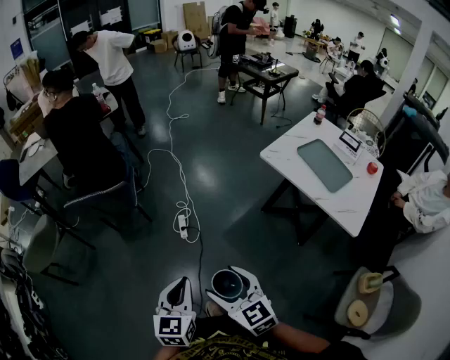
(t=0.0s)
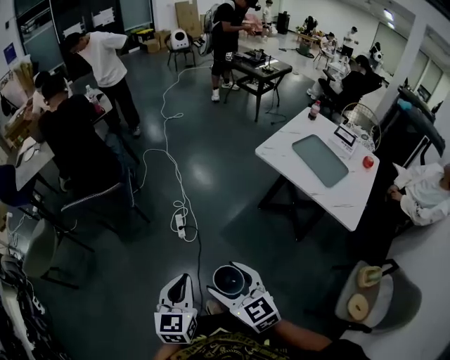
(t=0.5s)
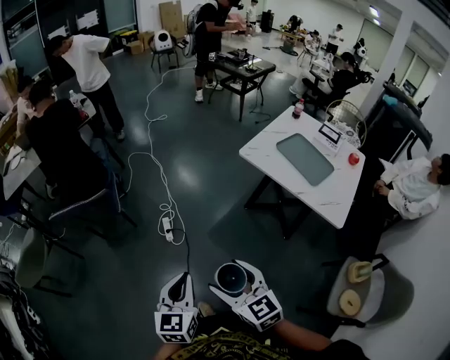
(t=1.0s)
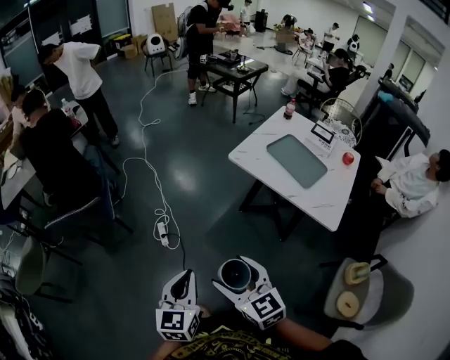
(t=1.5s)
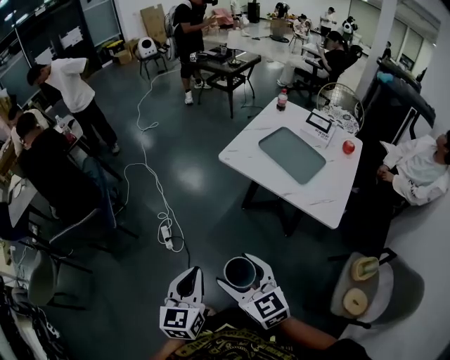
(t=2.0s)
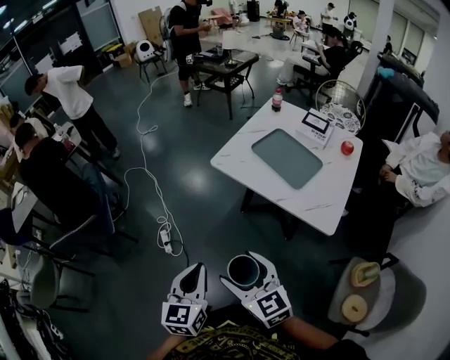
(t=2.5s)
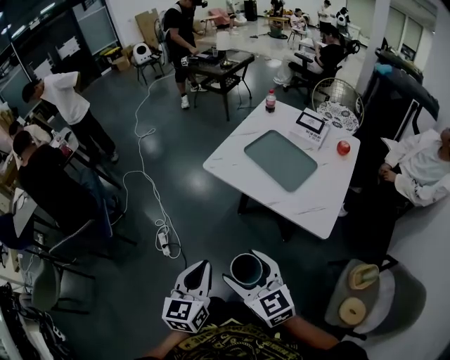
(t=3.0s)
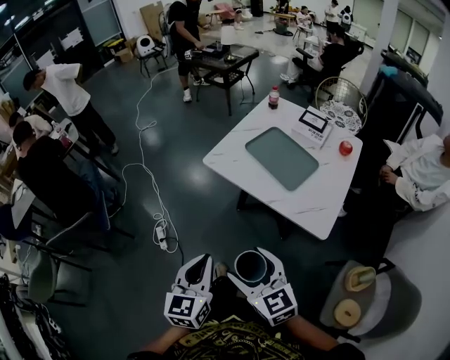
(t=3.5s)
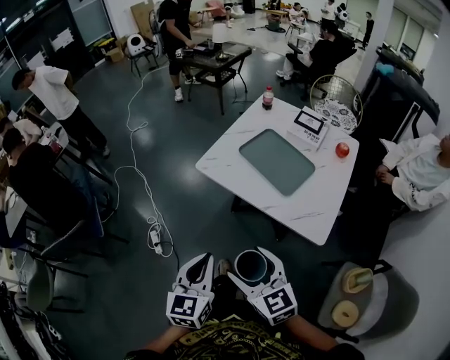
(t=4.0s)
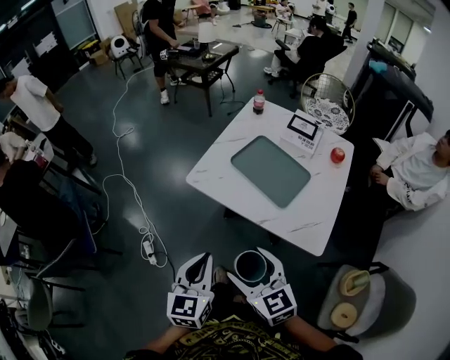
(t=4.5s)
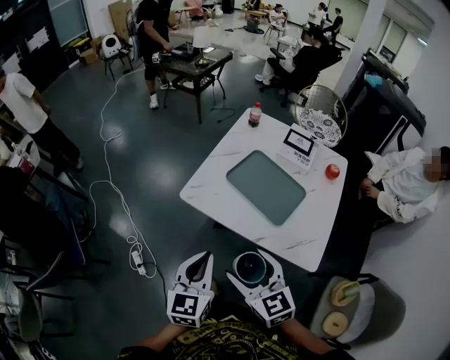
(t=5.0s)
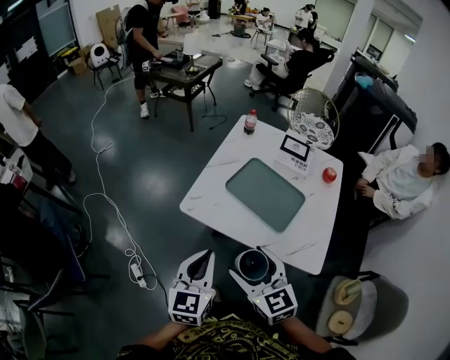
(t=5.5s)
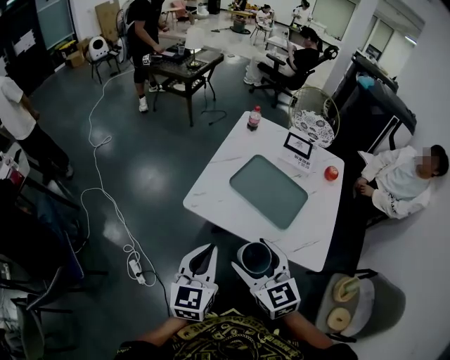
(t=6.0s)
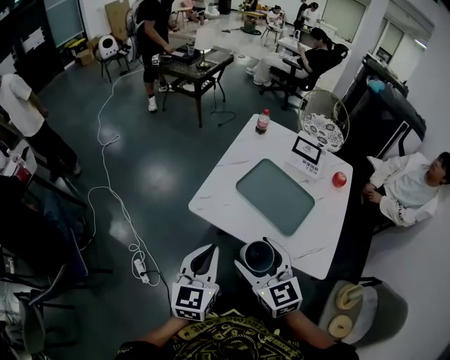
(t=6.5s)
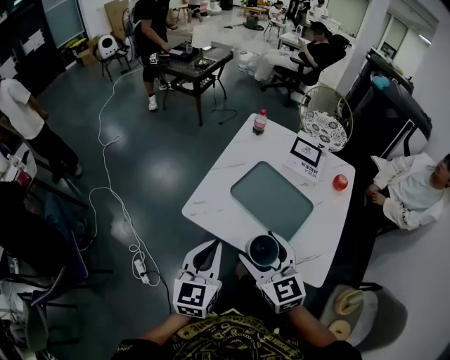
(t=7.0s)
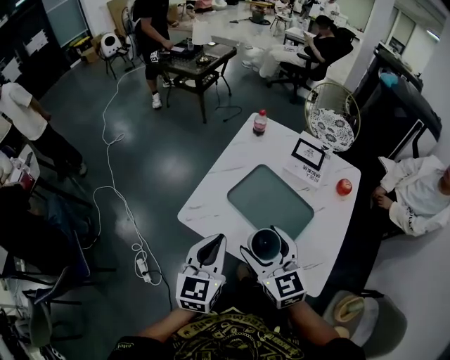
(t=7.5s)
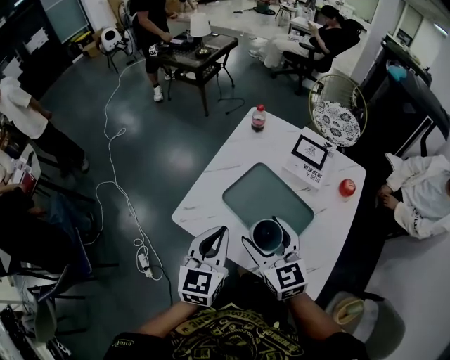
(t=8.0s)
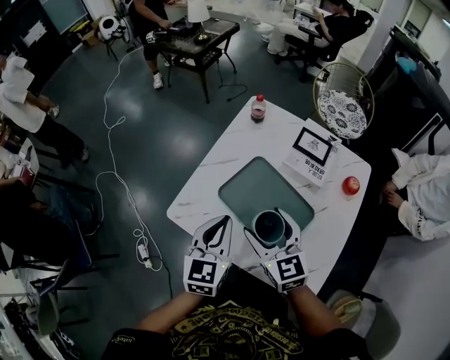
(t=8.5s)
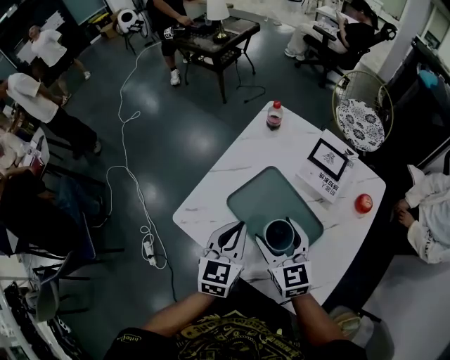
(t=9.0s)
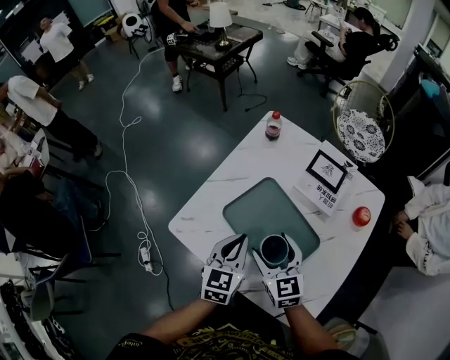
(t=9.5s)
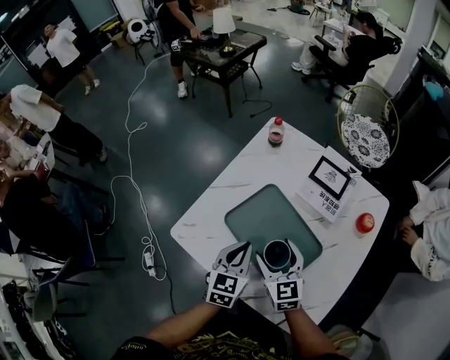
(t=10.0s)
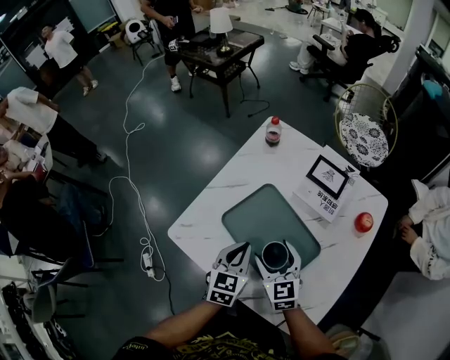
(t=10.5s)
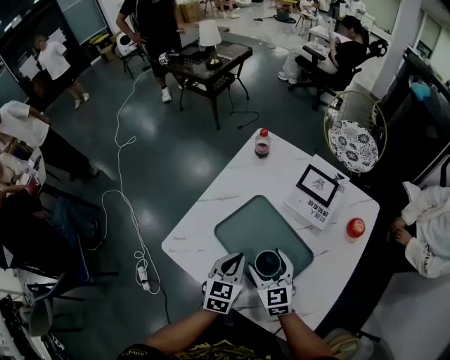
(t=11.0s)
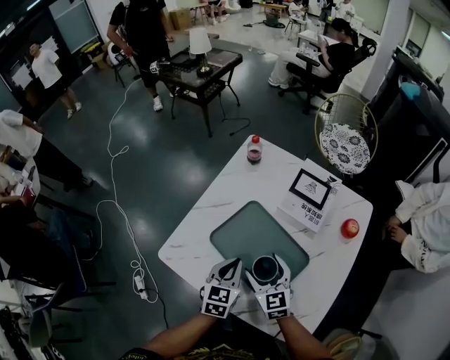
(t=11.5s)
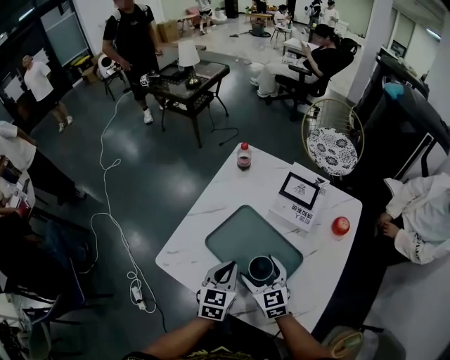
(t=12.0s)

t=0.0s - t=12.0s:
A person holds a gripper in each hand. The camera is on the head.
t=0.0s - t=2.0s: Both grippers travel together to the right, approximately 20 cm.
t=2.0s - t=4.0s: The grippers both shift to the right and forward by roughly 20 cm.
t=4.0s - t=6.0s: Both grippers move forward, approximately 20 cm.
t=6.0s - t=8.0s: The grippers both shift forward and to the right by about 20 cm.
t=8.0s - t=10.0s: Both grippers travel together downward, to the right and forward, some 15 cm.
t=10.0s - t=12.0s: The grippers move only a little.

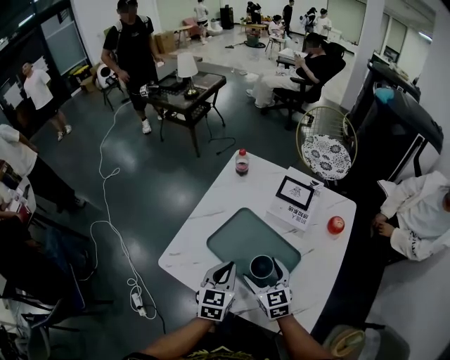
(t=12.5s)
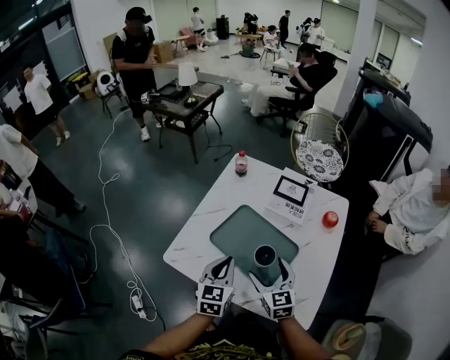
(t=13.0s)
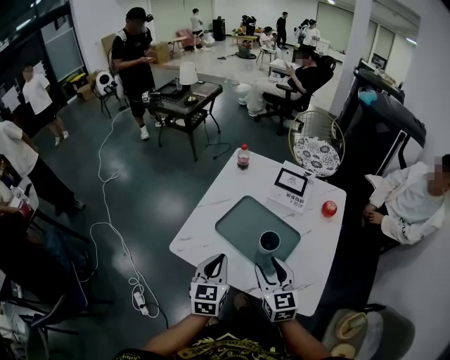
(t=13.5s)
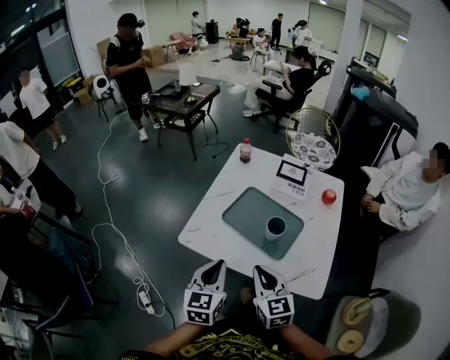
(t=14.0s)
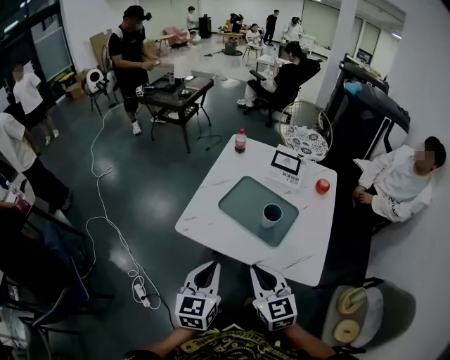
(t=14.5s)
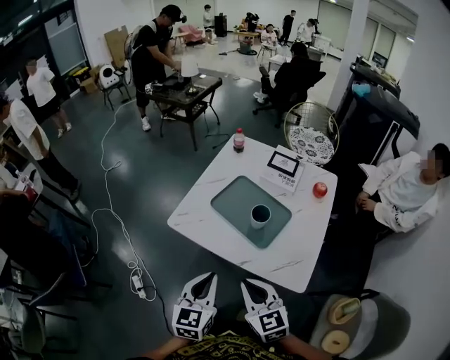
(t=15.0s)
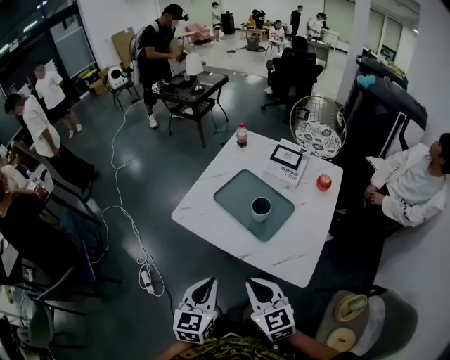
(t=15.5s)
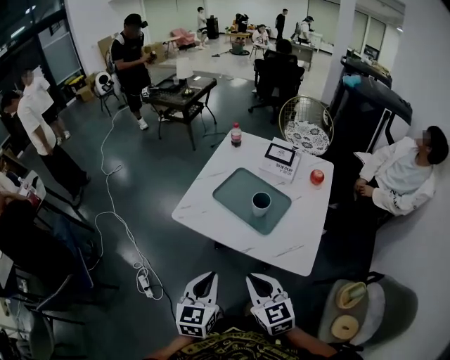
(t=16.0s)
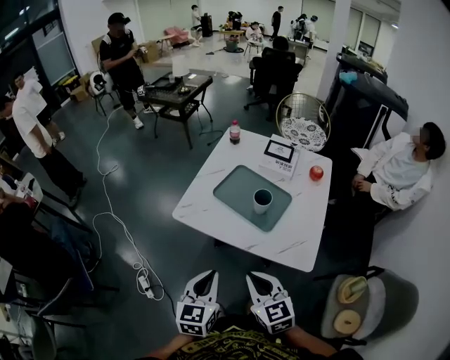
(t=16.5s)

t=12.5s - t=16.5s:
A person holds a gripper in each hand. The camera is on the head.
t=12.5s - t=14.5s: The left gripper heads backward, to the left and upward, covering roughly 25 cm. The right gripper shifts about 30 cm backward, upward and to the left, and closes.
t=14.5s - t=16.5s: Both grippers move backward, roughly 10 cm.

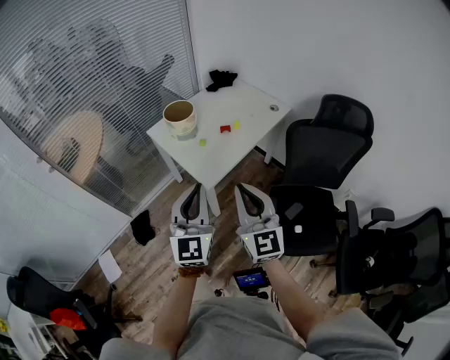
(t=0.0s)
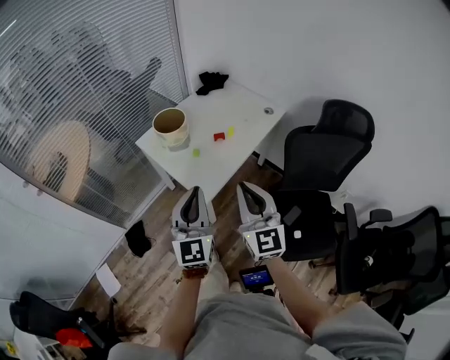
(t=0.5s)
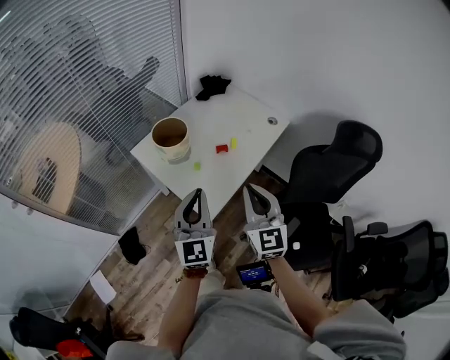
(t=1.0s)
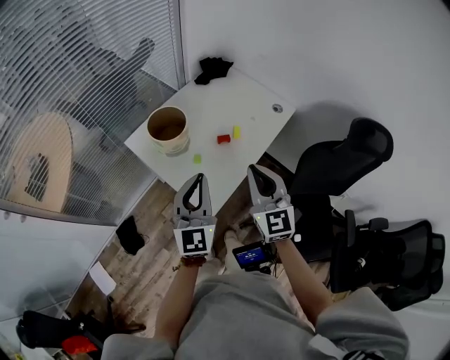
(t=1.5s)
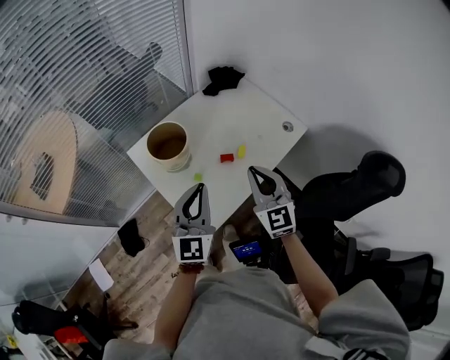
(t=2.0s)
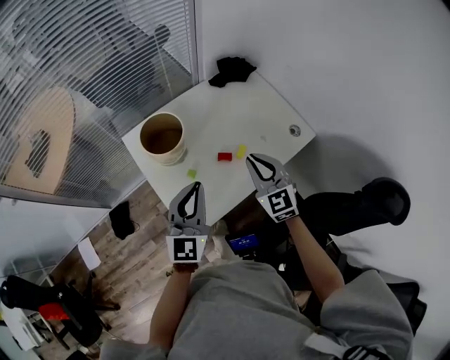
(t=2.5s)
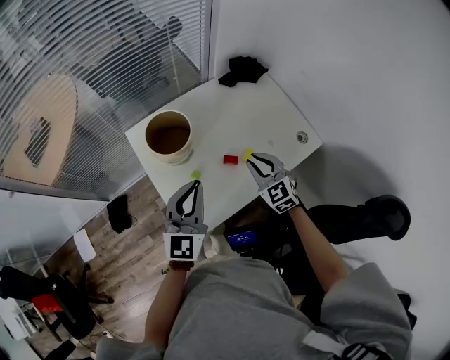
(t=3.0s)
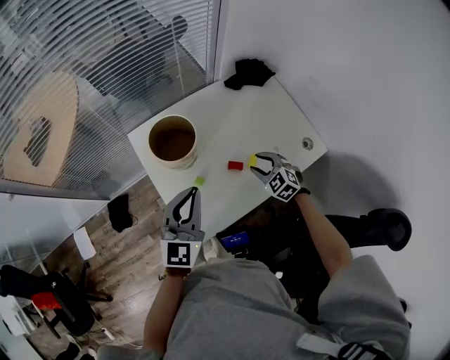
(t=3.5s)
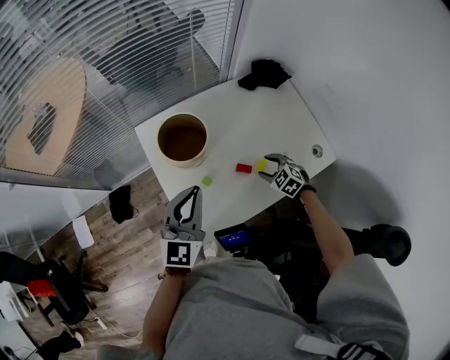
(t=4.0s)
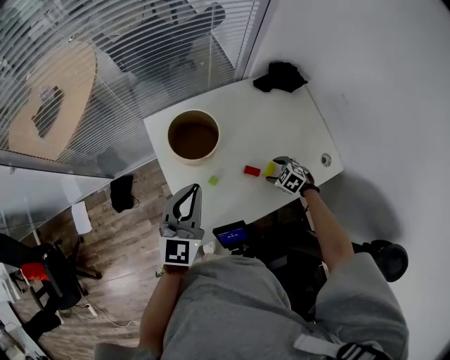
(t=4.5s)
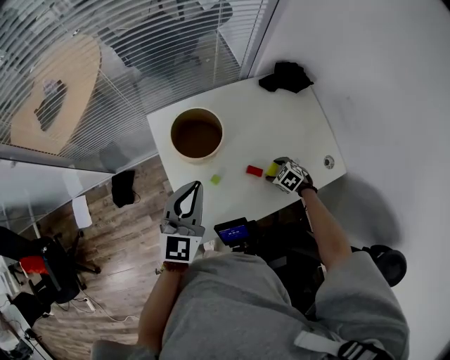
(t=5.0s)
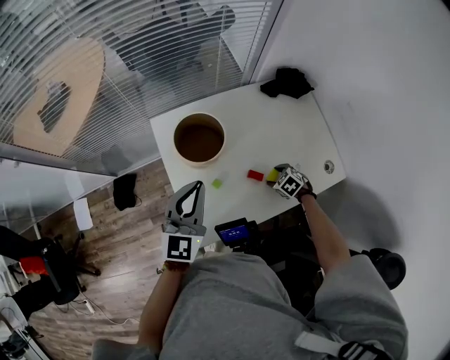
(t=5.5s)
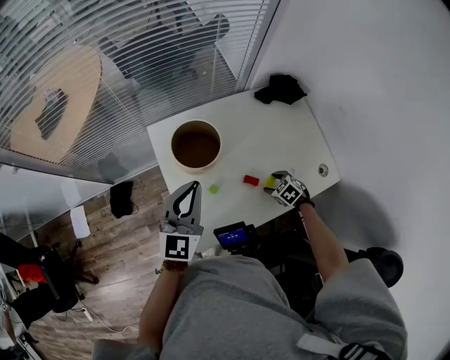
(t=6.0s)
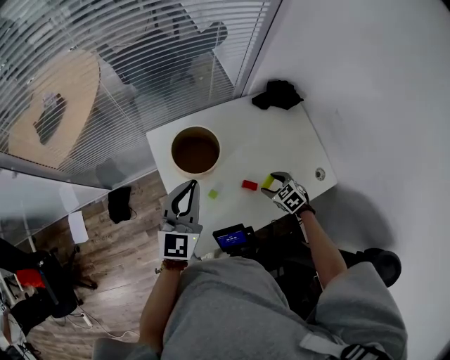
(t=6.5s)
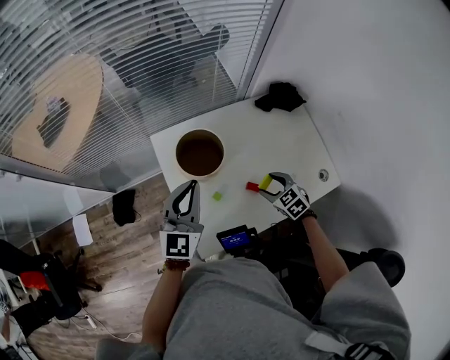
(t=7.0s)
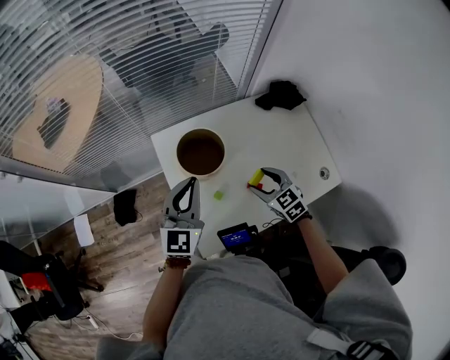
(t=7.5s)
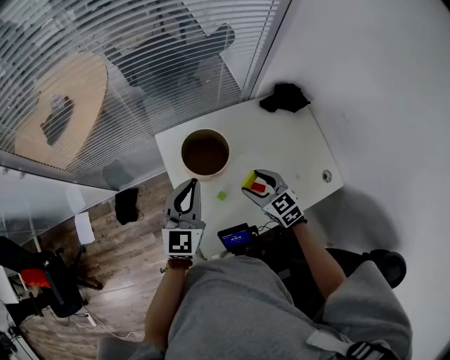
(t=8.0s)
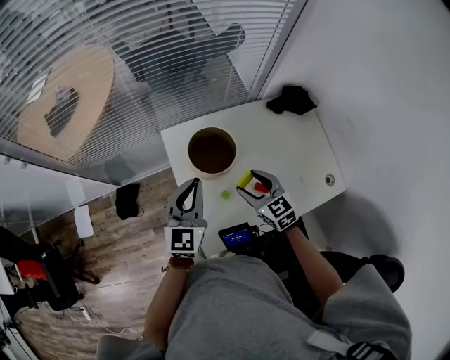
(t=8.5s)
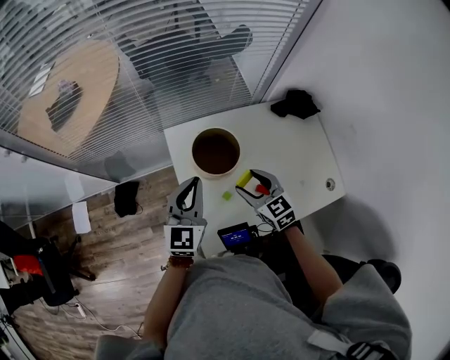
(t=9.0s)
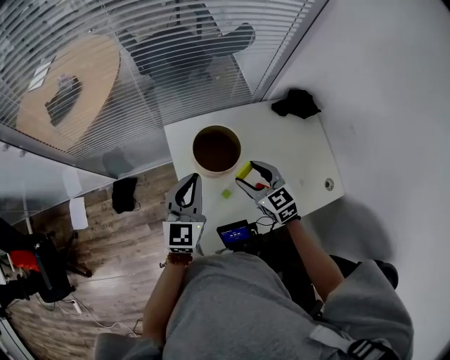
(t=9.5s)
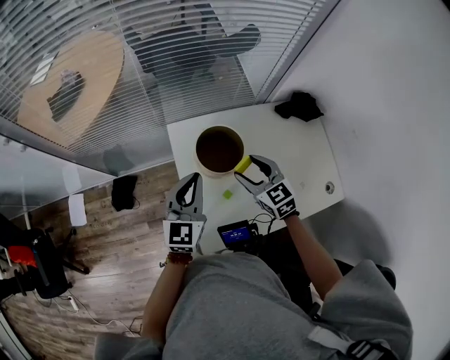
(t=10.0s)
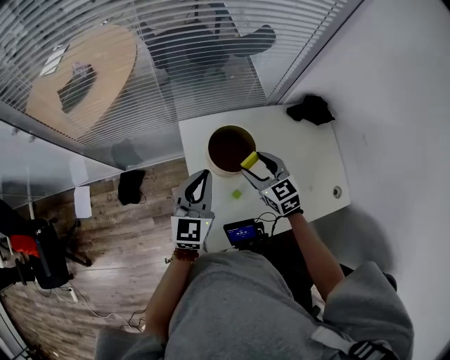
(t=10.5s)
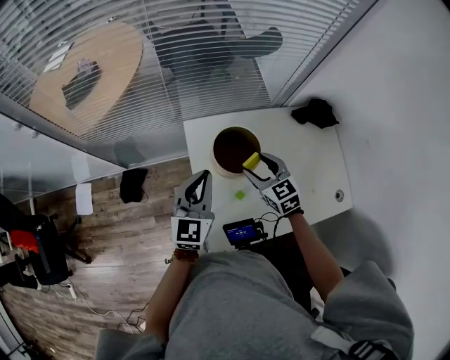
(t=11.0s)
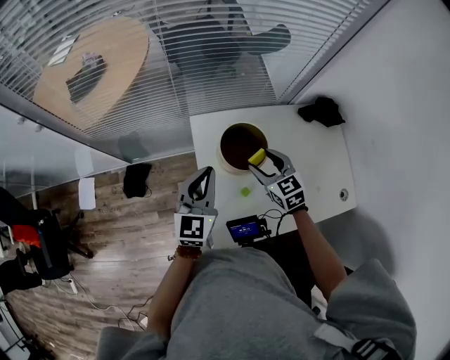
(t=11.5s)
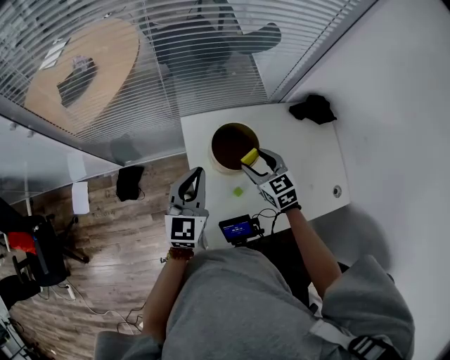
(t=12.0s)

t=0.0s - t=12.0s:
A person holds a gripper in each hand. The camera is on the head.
t=0.0s - t=2.0s: Both grippers travel together forward, some 35 cm.
t=2.0s - t=4.0s: The left gripper is displaced forward and downward by approximately 10 cm. Meanwhile the right gripper shifts approximately 35 cm downward and forward, points its fingers about 50 degrees further downward, and opens up.
t=4.0s - t=6.0s: The left gripper changes place by about 5 cm.
t=6.0s - t=8.0s: The right gripper shifts about 25 cm upward and to the left, and angles its fingers upward, by approximately 40 degrees.
t=8.0s - t=10.0s: The right gripper moves forward, some 5 cm.
t=10.0s - t=12.0s: The grippers make only small movements.
